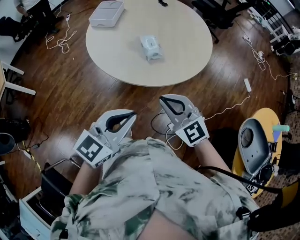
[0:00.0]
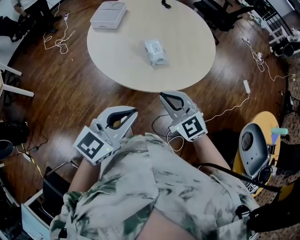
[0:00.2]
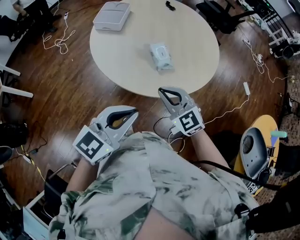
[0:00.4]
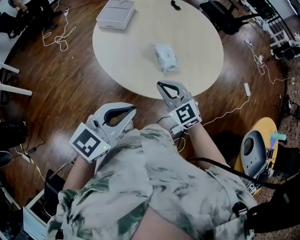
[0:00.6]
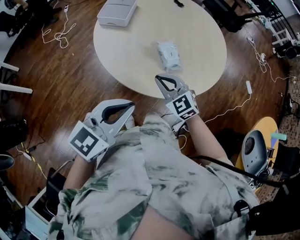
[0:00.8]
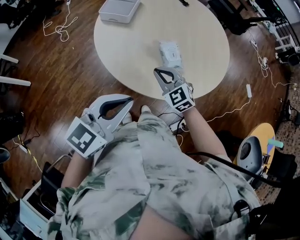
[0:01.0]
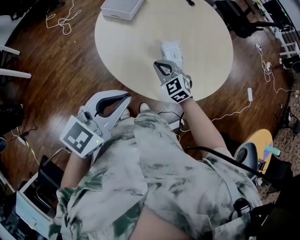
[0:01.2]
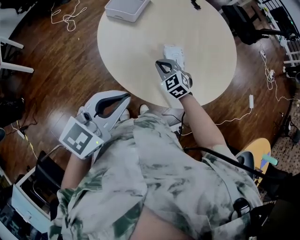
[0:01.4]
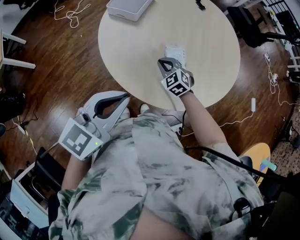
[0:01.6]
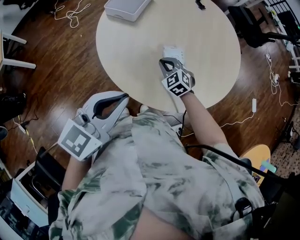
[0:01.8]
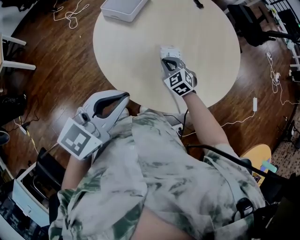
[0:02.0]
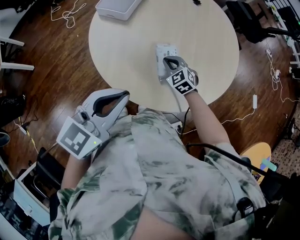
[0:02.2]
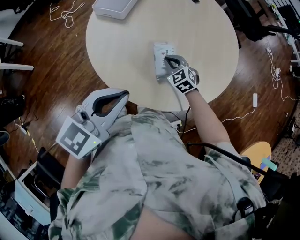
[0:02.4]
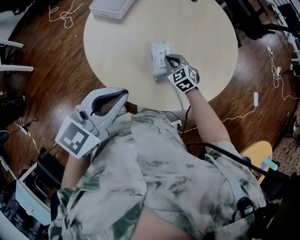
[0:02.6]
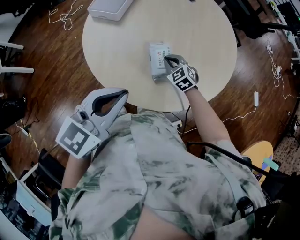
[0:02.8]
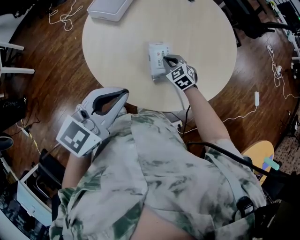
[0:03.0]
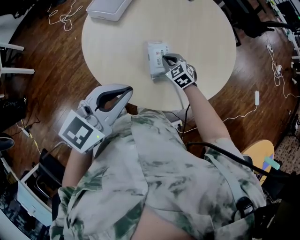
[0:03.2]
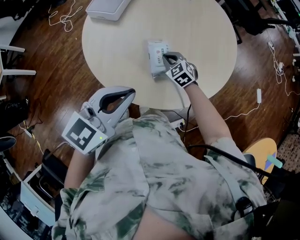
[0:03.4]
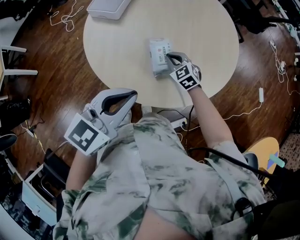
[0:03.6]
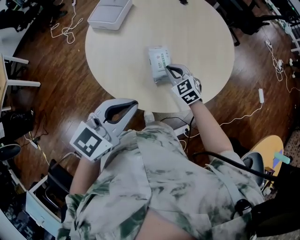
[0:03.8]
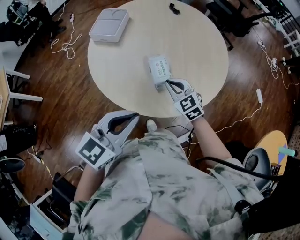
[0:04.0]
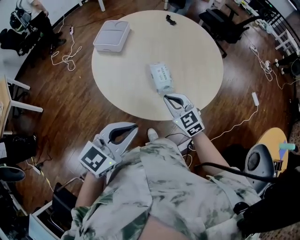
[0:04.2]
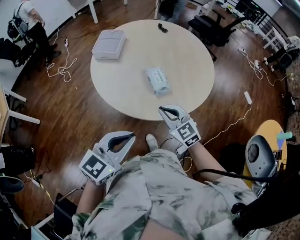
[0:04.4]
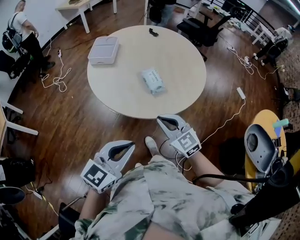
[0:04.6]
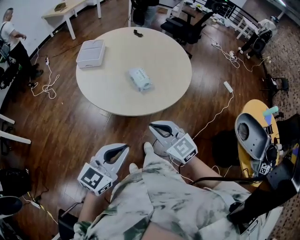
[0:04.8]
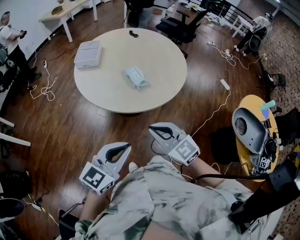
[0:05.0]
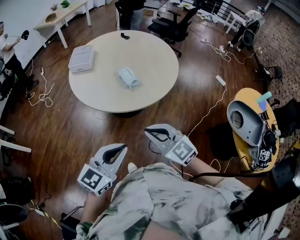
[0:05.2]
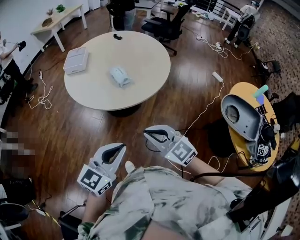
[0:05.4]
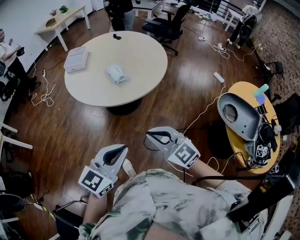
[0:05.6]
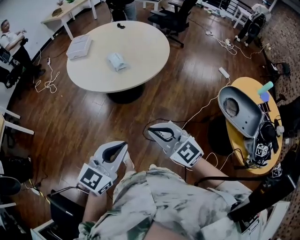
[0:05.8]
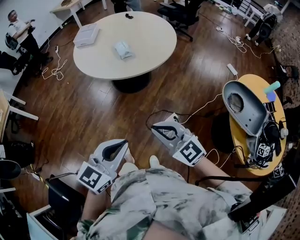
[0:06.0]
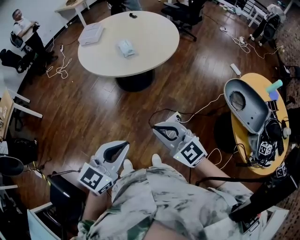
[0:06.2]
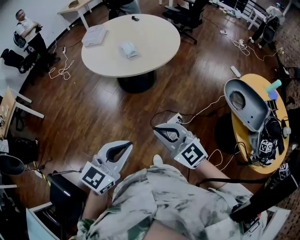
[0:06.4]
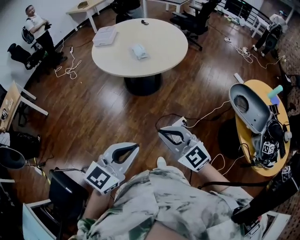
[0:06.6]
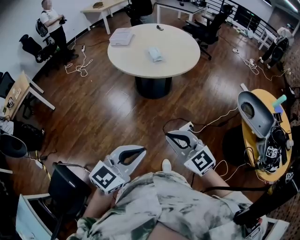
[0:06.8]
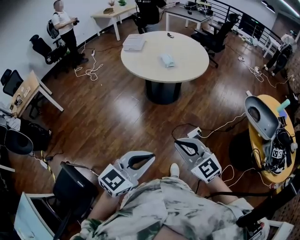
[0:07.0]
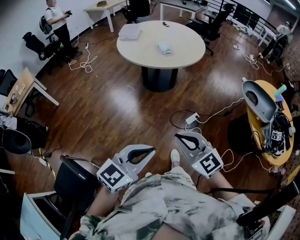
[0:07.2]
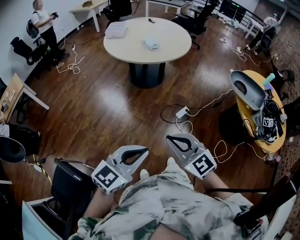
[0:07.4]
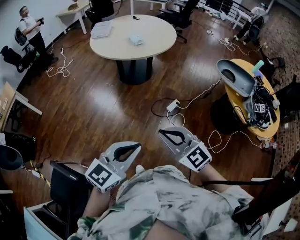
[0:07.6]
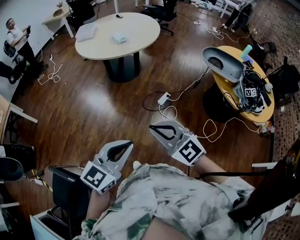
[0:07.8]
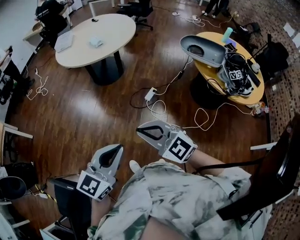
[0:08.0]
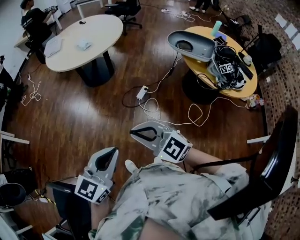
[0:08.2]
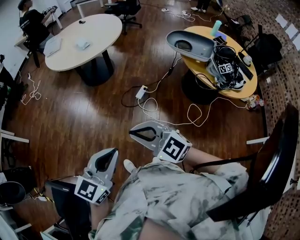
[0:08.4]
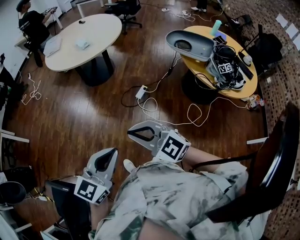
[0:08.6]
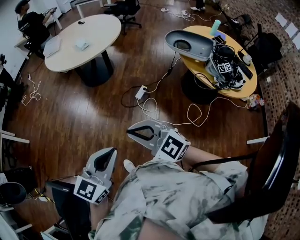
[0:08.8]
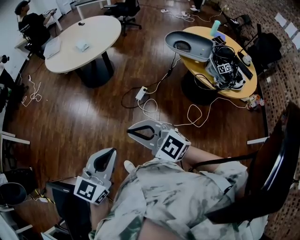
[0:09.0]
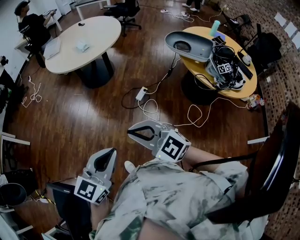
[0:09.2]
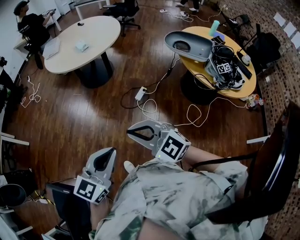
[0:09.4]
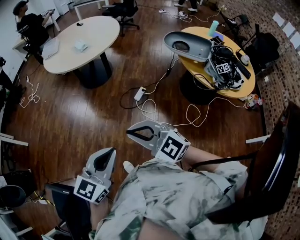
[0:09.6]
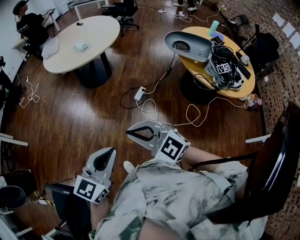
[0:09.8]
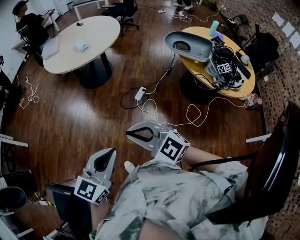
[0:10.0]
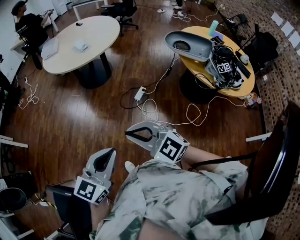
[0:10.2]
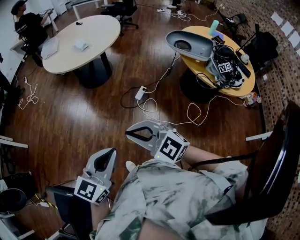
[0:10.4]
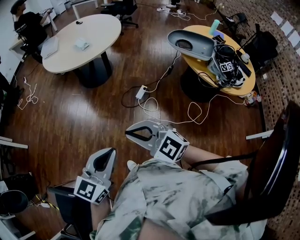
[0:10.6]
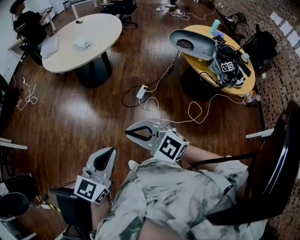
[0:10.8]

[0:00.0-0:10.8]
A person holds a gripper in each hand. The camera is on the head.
0:00.0 to 0:01.6: The left gripper goes some 25 cm forward and to the left, while the right gripper is displaced forward and downward by some 40 cm, and rotates about 30 degrees.
0:01.6 to 0:03.0: The grippers both shift to the right by roughly 10 cm.
0:03.0 to 0:04.6: The right gripper heads backward and upward, covering approximately 40 cm, and changes its angle by about 30 degrees. Meanwhile the left gripper shifts approximately 25 cm backward.
0:04.6 to 0:06.2: Both grippers move backward and to the right, some 35 cm.
0:06.2 to 0:07.8: Both grippers move backward, approximately 30 cm.
0:07.8 to 0:09.2: The grippers both shift to the right by roughly 10 cm.
0:09.2 to 0:10.8: Both grippers travel together to the left, some 10 cm.

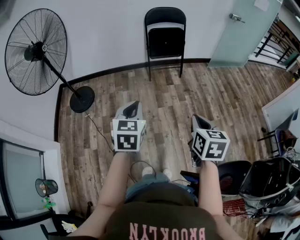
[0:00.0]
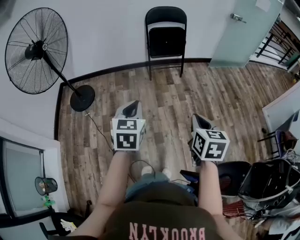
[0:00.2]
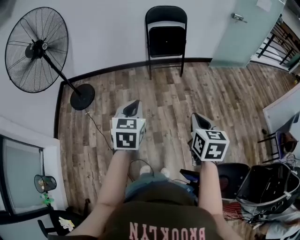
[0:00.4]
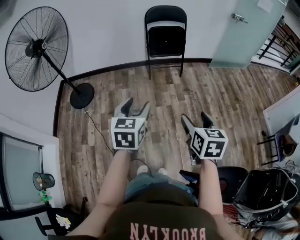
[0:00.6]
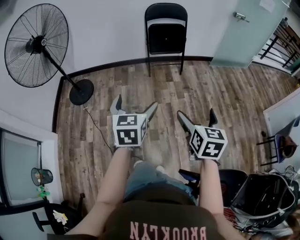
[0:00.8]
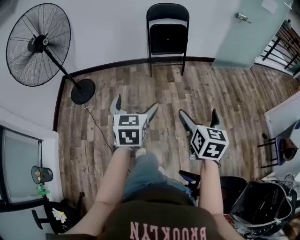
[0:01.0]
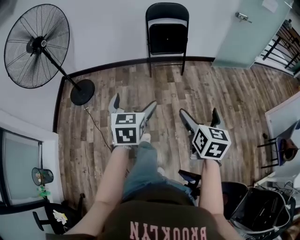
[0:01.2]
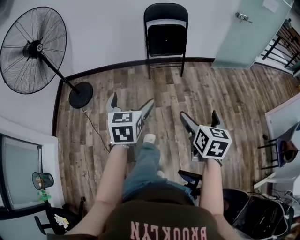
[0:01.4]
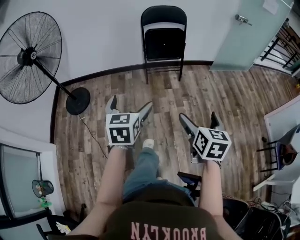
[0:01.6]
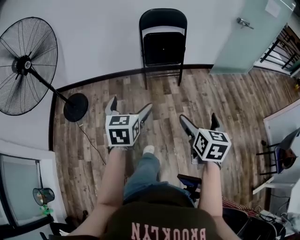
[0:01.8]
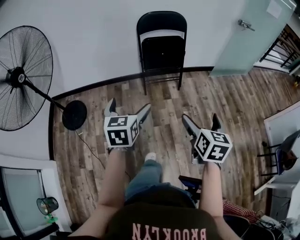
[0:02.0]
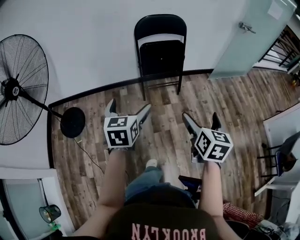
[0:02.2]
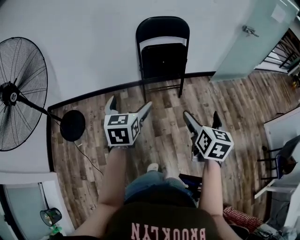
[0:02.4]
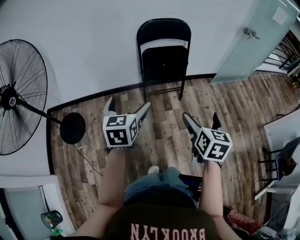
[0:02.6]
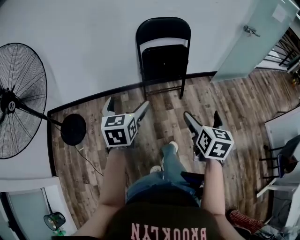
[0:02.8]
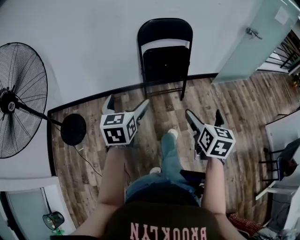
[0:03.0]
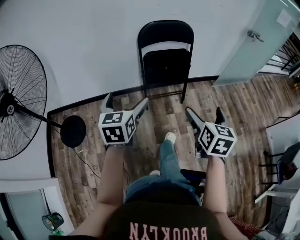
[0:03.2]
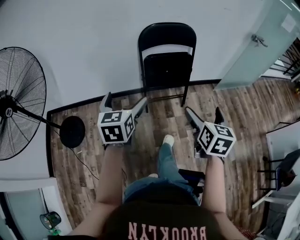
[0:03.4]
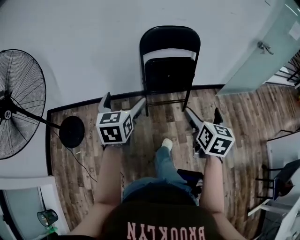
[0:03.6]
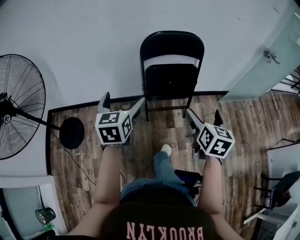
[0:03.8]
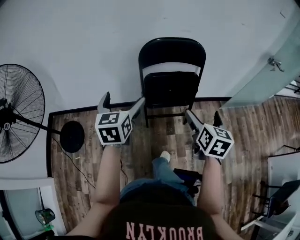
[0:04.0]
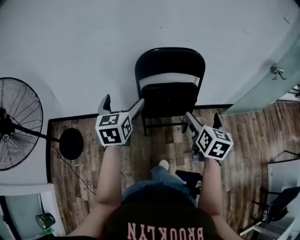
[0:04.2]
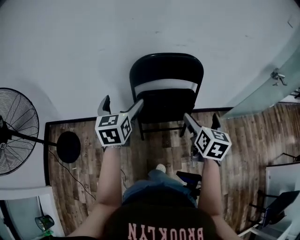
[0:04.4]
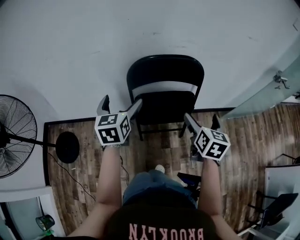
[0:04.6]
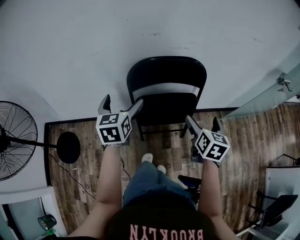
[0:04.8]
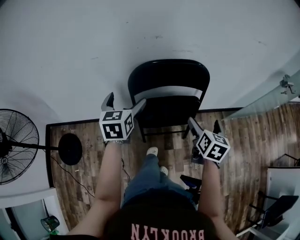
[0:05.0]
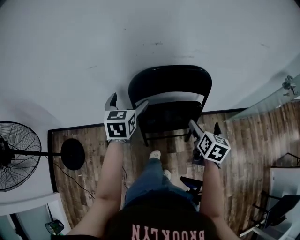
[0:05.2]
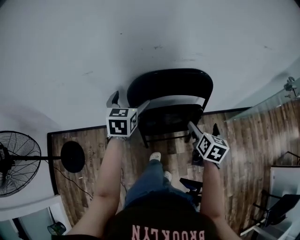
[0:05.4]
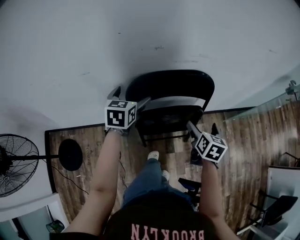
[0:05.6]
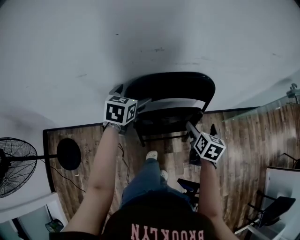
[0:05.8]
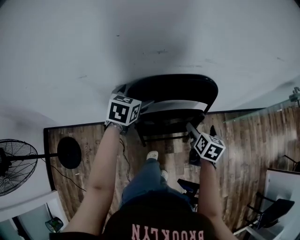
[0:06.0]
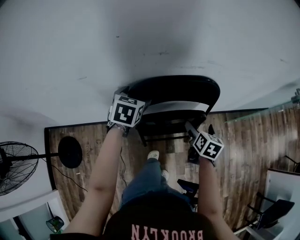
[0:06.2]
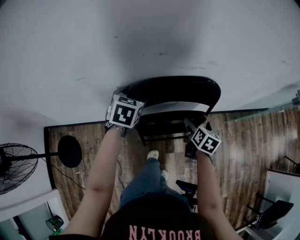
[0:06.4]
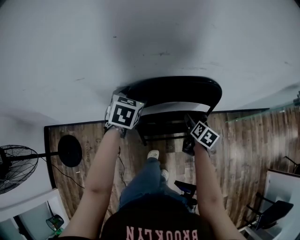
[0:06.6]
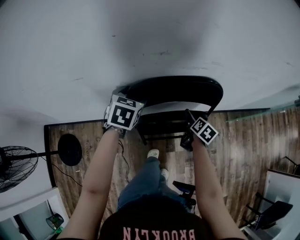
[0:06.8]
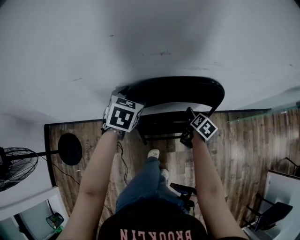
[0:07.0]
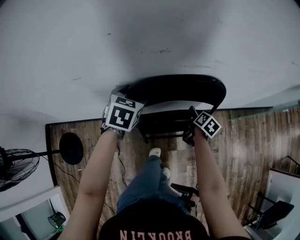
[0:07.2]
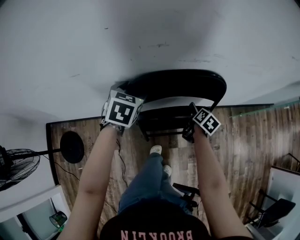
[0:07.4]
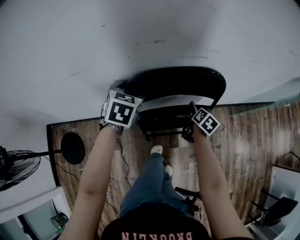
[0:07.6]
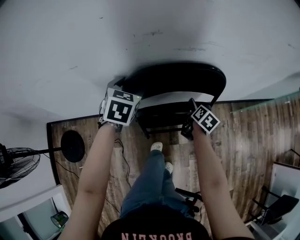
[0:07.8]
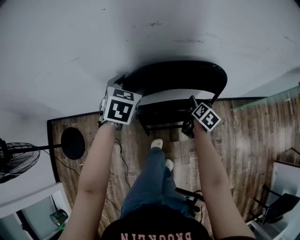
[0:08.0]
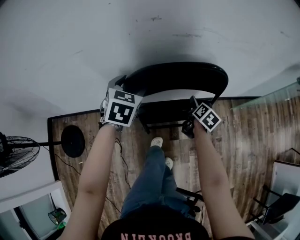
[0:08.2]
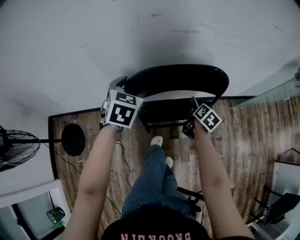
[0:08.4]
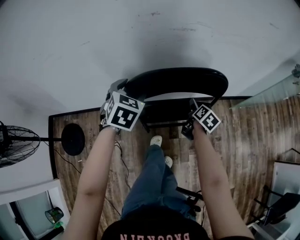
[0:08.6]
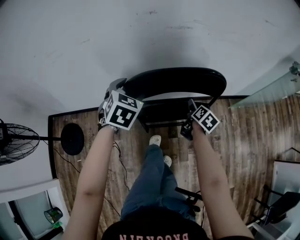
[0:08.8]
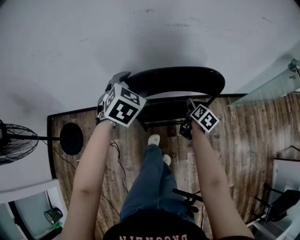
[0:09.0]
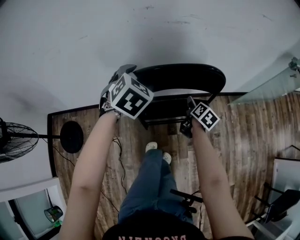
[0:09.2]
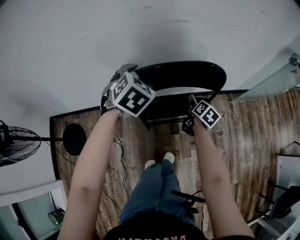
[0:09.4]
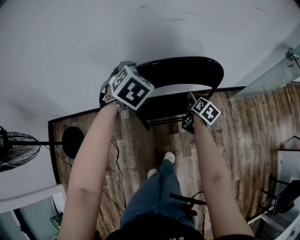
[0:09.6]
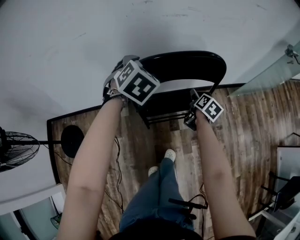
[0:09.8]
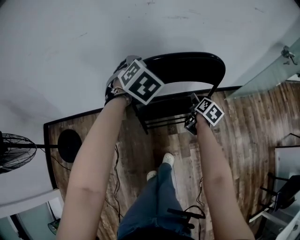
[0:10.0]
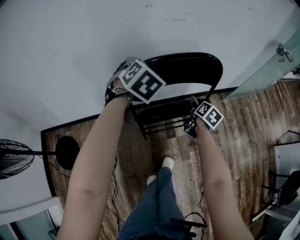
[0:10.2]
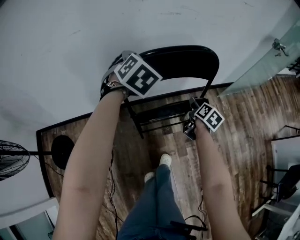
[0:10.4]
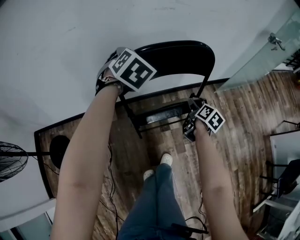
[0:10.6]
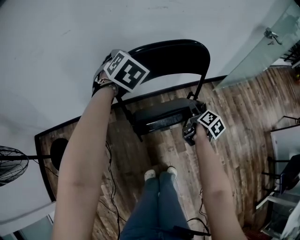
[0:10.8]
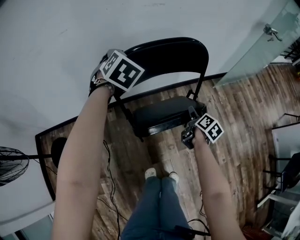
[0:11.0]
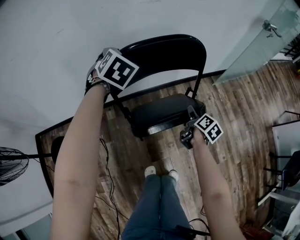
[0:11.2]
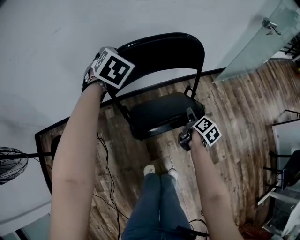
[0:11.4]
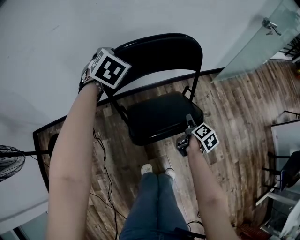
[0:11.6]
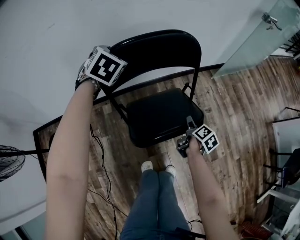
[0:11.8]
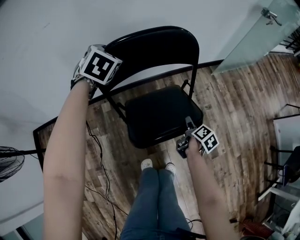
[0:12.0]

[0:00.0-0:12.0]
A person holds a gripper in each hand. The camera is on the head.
0:00.0 to 0:01.6: The right gripper heads forward and to the right, covering about 15 cm, and opens up, while the left gripper travels forward by about 15 cm, and opens its fingers.
0:01.6 to 0:03.0: Both grippers move forward, approximately 35 cm.
0:03.0 to 0:04.4: Both grippers travel together forward, roughly 40 cm.
0:04.4 to 0:06.0: Both grippers move forward and downward, some 25 cm. The left gripper turns by about 30 degrees.
0:06.0 to 0:07.6: The right gripper shifts approximately 15 cm downward and forward, turns by about 20 degrees, and closes up. Meanwhile the left gripper closes.
0:07.6 to 0:09.0: The right gripper travels backward by roughly 15 cm; the left gripper is displaced backward and to the right by some 20 cm.
0:09.0 to 0:10.4: The right gripper goes about 5 cm backward.
0:10.4 to 0:12.0: The right gripper travels backward, downward and to the right by some 25 cm, and rotates about 20 degrees. The left gripper travels downward by about 5 cm.

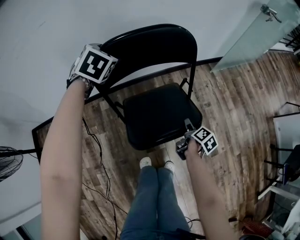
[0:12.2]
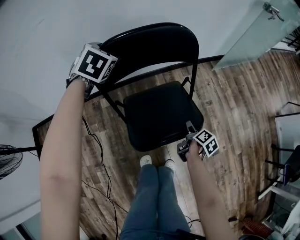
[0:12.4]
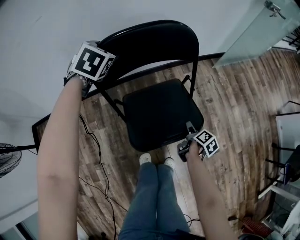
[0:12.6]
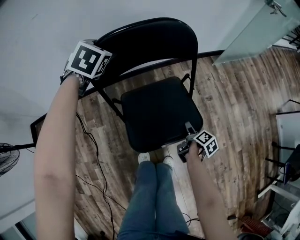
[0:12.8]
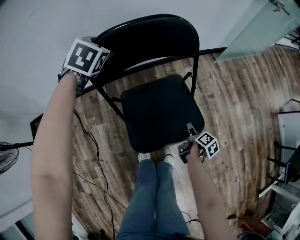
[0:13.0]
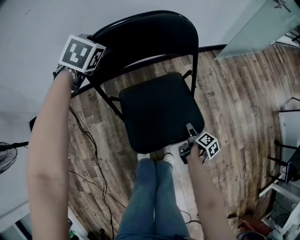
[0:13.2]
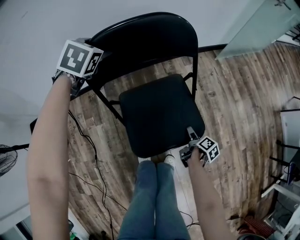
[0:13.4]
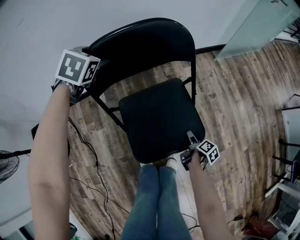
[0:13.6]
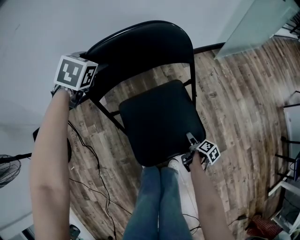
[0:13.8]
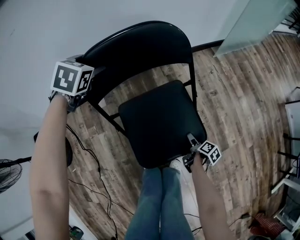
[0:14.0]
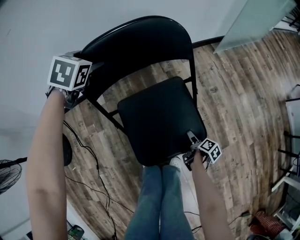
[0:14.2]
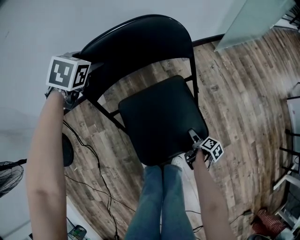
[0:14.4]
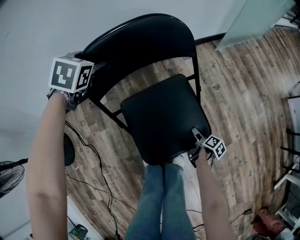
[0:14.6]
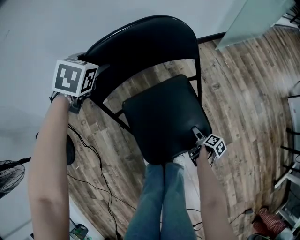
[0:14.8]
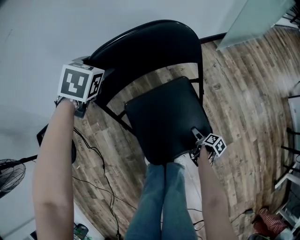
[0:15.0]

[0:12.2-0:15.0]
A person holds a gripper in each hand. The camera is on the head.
0:12.2 to 0:13.6: The right gripper shifts roughly 20 cm downward and backward, while the left gripper heads downward, covering about 10 cm.
0:13.6 to 0:15.0: The right gripper shifts approximately 5 cm downward.
